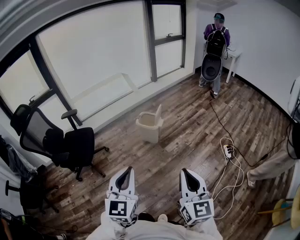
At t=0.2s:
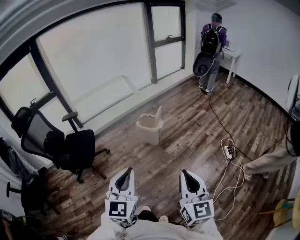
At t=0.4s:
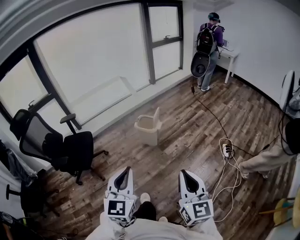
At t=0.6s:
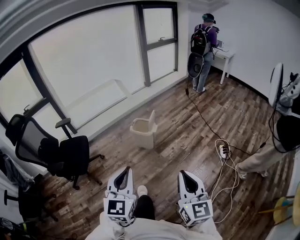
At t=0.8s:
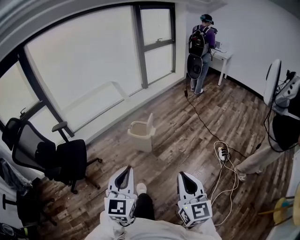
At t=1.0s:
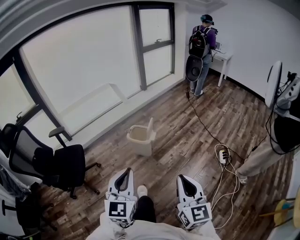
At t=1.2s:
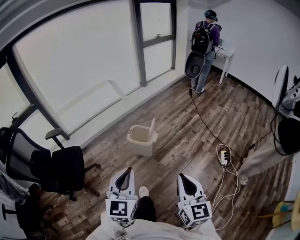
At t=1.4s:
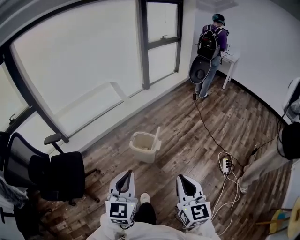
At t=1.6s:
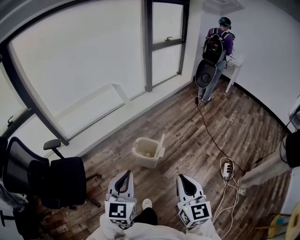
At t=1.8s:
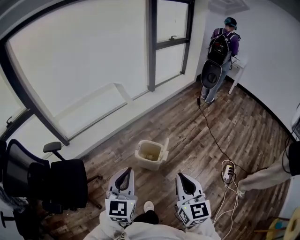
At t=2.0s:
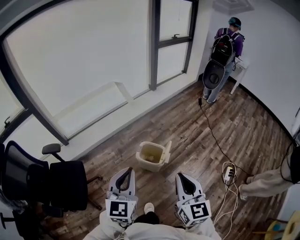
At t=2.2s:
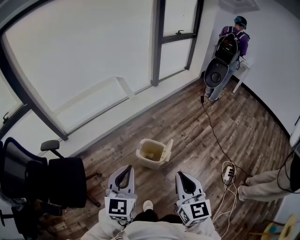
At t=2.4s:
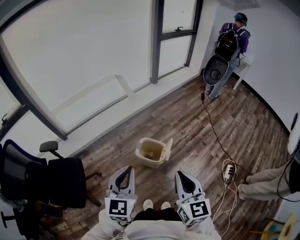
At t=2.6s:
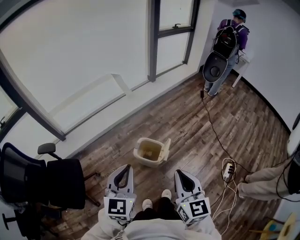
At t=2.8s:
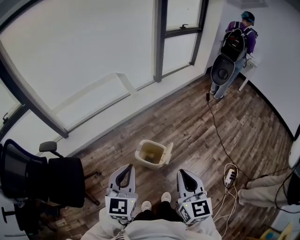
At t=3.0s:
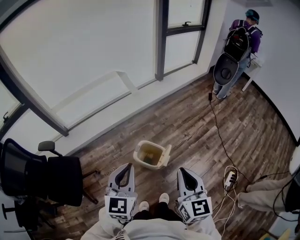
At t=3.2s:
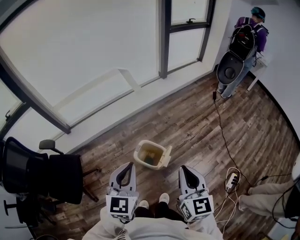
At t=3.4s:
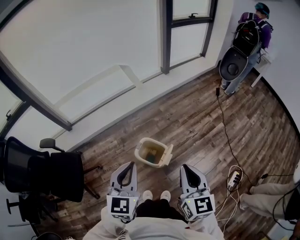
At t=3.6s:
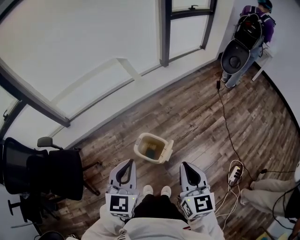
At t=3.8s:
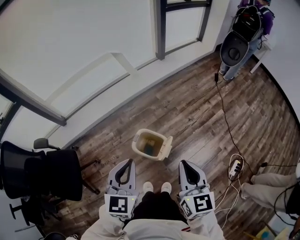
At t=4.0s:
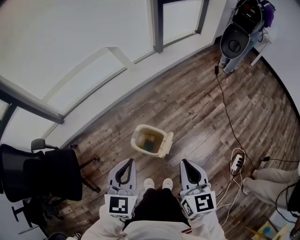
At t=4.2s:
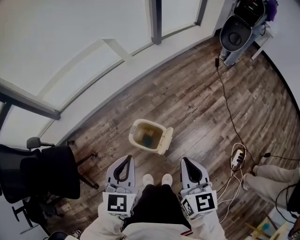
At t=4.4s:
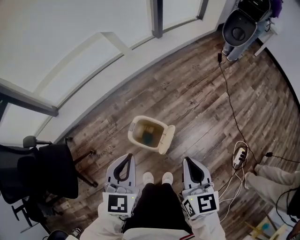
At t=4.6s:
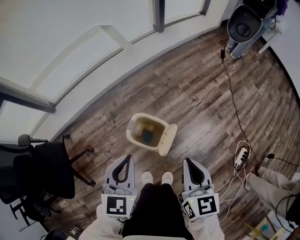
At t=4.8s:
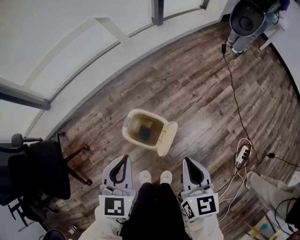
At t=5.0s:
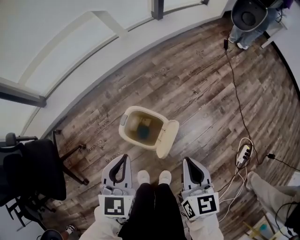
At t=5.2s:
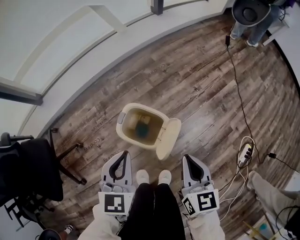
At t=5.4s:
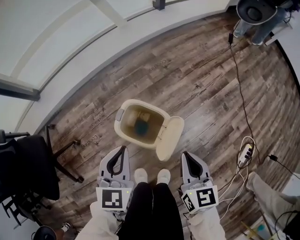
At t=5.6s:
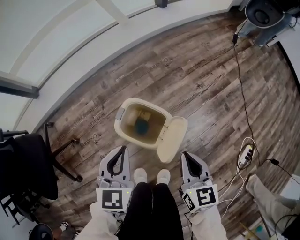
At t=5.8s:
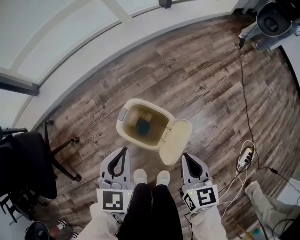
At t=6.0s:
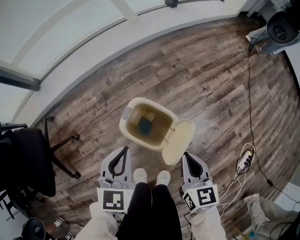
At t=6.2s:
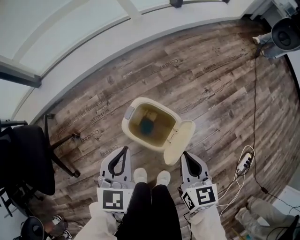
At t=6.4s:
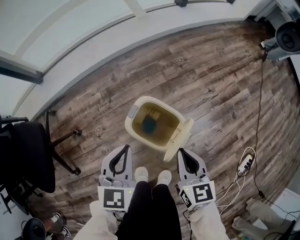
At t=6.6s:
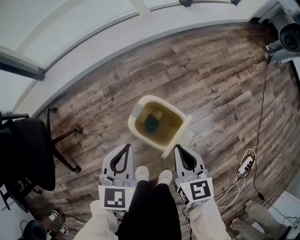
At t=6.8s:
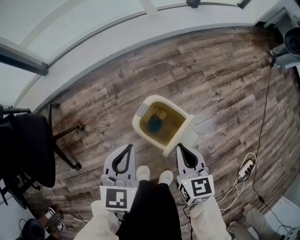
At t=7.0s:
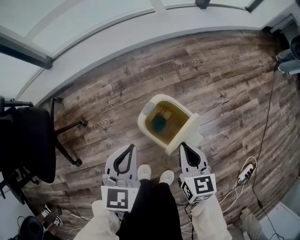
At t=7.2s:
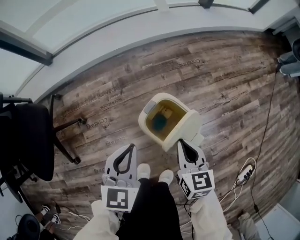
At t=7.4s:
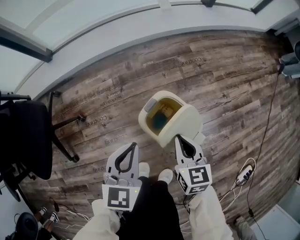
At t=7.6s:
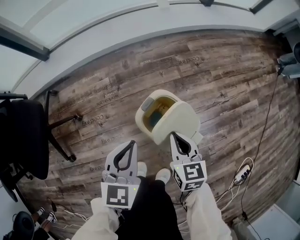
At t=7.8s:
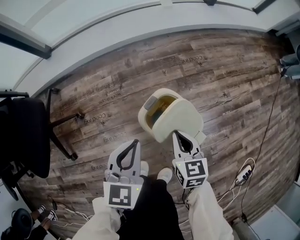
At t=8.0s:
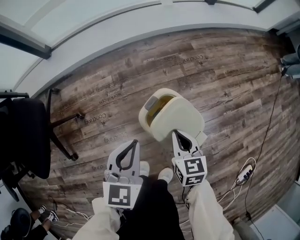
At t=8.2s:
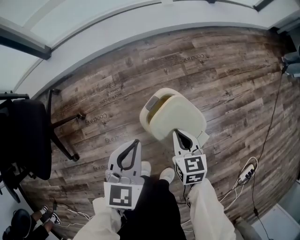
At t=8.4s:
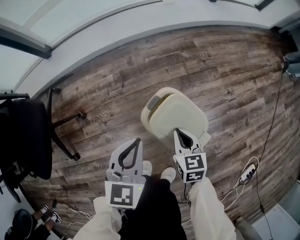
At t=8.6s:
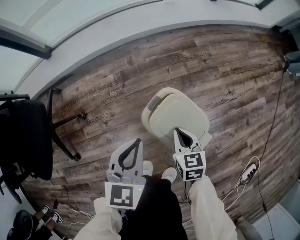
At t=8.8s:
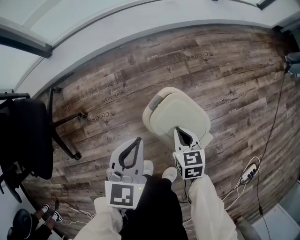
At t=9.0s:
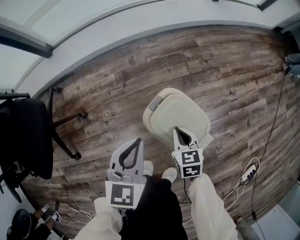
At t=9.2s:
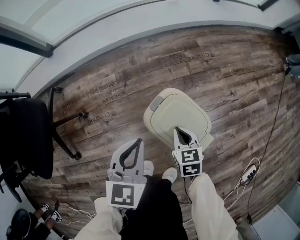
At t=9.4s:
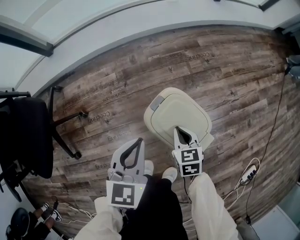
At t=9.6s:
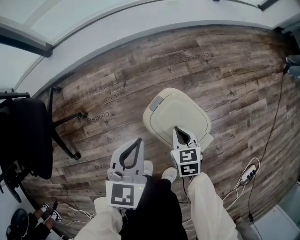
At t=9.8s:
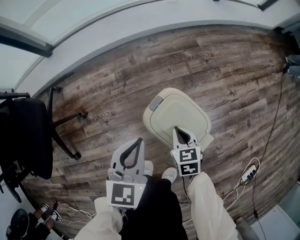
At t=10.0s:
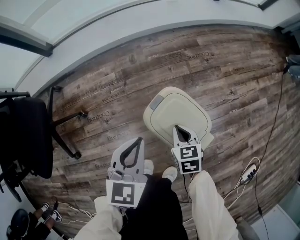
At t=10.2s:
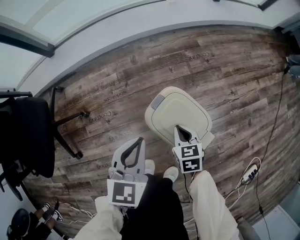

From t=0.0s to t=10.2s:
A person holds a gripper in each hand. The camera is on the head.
From t=0.0s to t=1.4s: The two grippers go roughly 30 cm forward.
From t=1.4s to t=3.0s: Both grippers travel together forward, roughly 35 cm.
From t=3.0s to t=4.4s: The two grippers go about 20 cm downward and forward.
From t=4.4s to t=5.8s: The two grippers go about 30 cm downward.
From t=5.8s to t=7.2s: The right gripper travels to the left, forward and downward by about 15 cm; the left gripper is displaced to the left by about 10 cm.
From t=7.2s to t=8.8s: The right gripper shifts some 10 cm downward.
From t=8.8s to t=10.2s: The grippers stay close to where they were, moving slightly.

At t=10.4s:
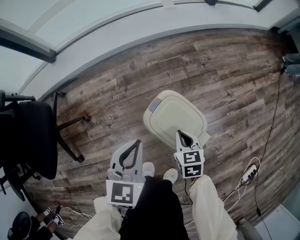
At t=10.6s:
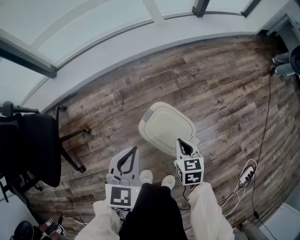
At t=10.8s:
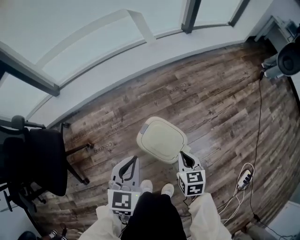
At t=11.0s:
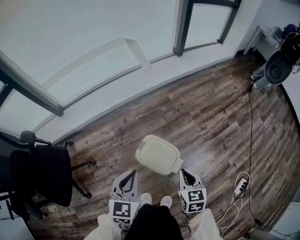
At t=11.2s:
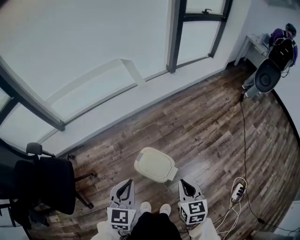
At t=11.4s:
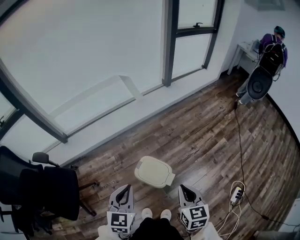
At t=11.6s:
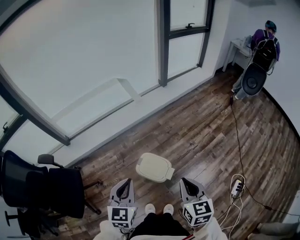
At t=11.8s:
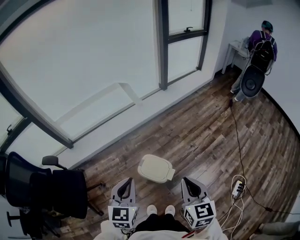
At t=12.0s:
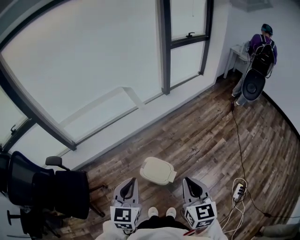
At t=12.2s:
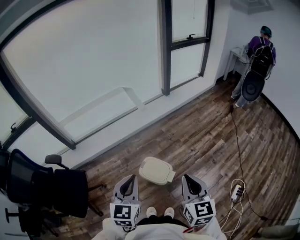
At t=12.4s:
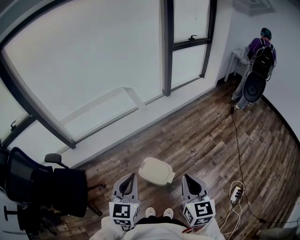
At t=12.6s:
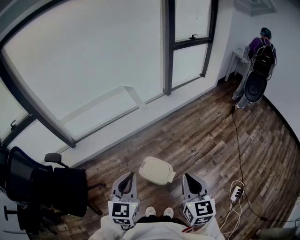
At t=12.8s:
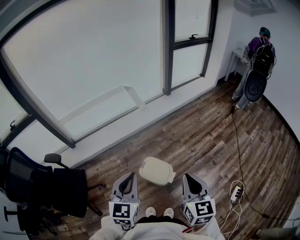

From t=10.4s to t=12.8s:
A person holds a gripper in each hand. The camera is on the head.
From t=10.4s to t=11.6s: Both grippers travel together upward, about 50 cm. The right gripper turns by about 30 degrees.
From t=11.6s to t=12.8s: Both grippers move upward, approximately 10 cm.

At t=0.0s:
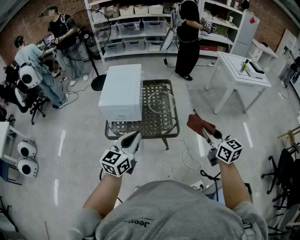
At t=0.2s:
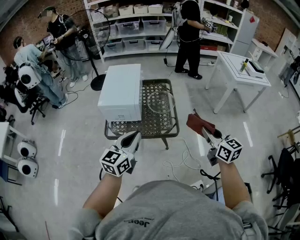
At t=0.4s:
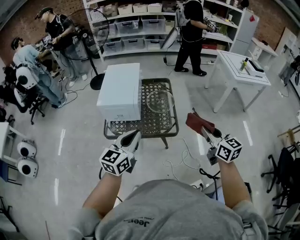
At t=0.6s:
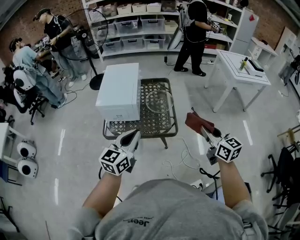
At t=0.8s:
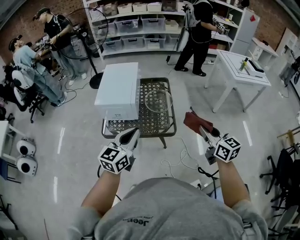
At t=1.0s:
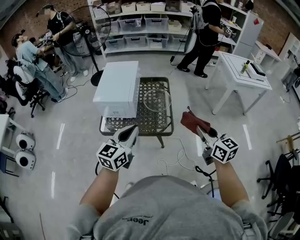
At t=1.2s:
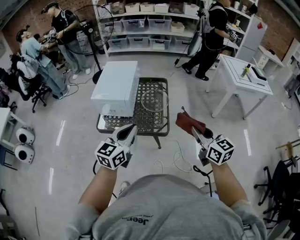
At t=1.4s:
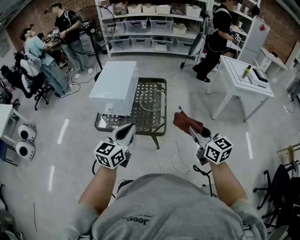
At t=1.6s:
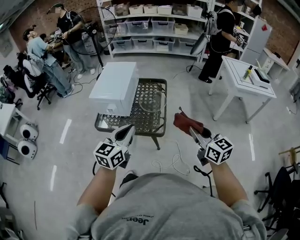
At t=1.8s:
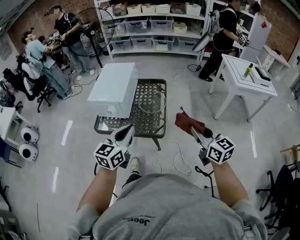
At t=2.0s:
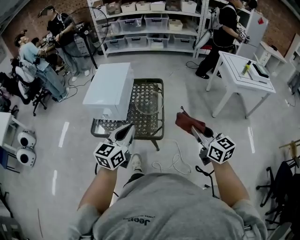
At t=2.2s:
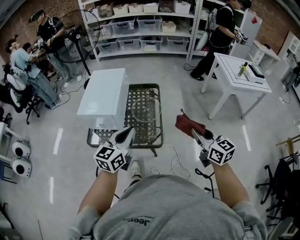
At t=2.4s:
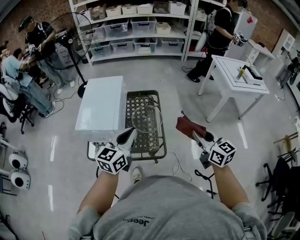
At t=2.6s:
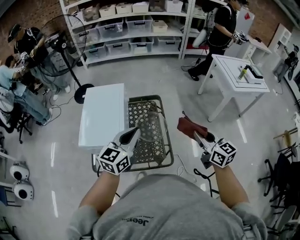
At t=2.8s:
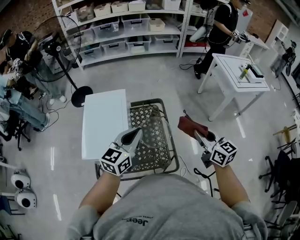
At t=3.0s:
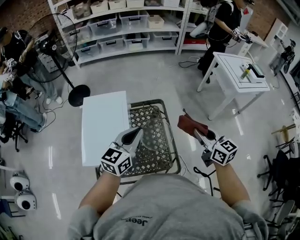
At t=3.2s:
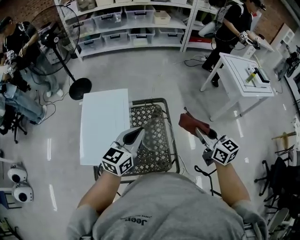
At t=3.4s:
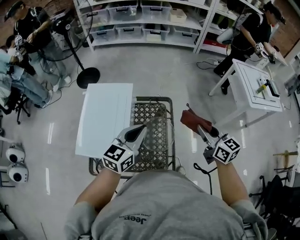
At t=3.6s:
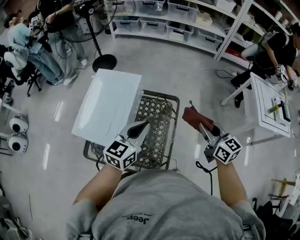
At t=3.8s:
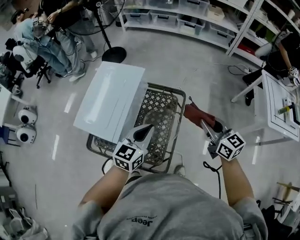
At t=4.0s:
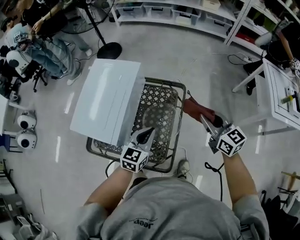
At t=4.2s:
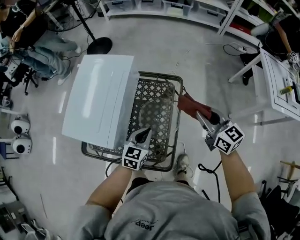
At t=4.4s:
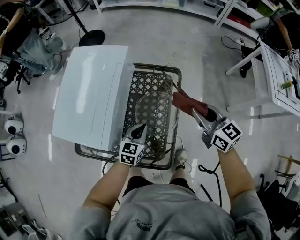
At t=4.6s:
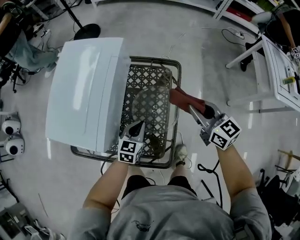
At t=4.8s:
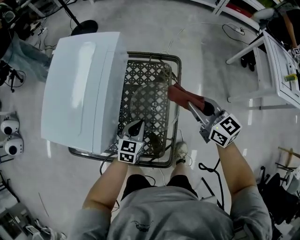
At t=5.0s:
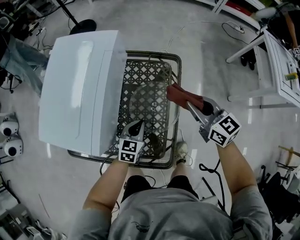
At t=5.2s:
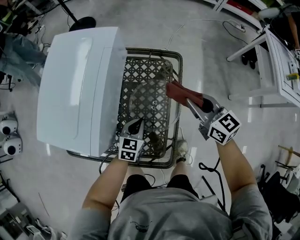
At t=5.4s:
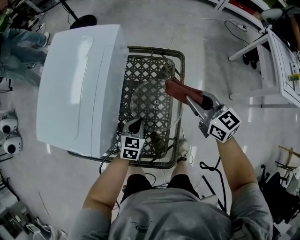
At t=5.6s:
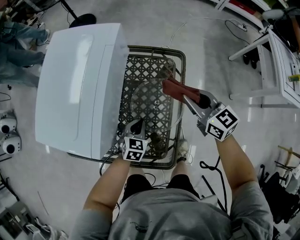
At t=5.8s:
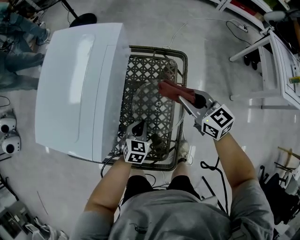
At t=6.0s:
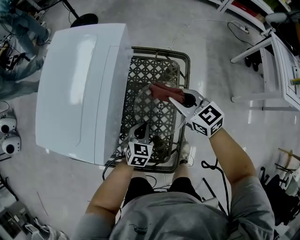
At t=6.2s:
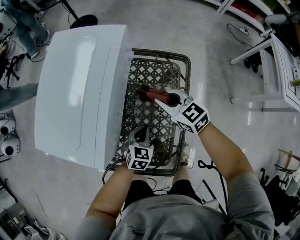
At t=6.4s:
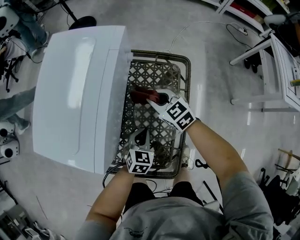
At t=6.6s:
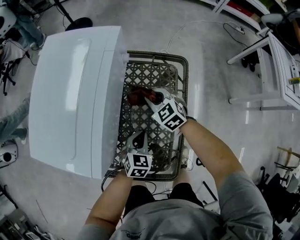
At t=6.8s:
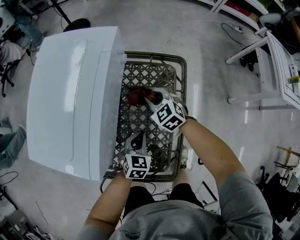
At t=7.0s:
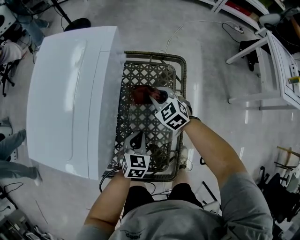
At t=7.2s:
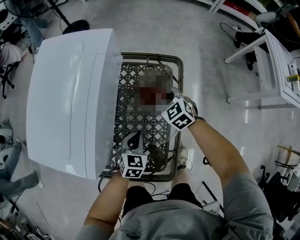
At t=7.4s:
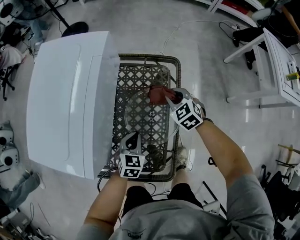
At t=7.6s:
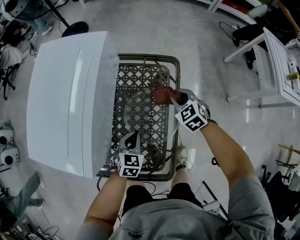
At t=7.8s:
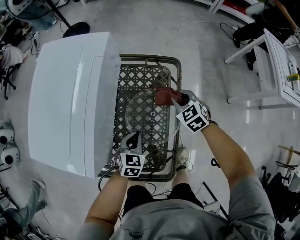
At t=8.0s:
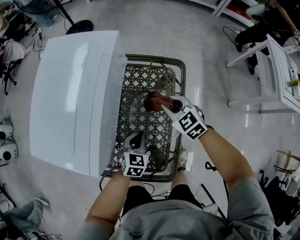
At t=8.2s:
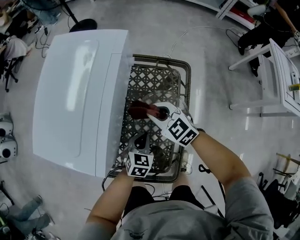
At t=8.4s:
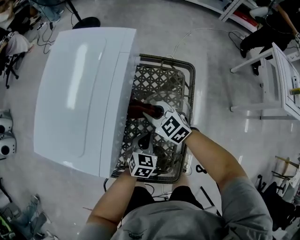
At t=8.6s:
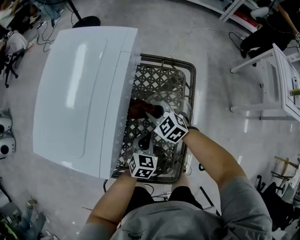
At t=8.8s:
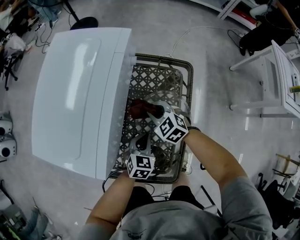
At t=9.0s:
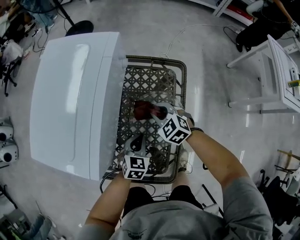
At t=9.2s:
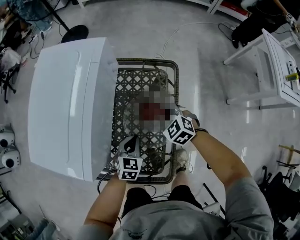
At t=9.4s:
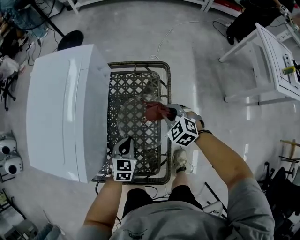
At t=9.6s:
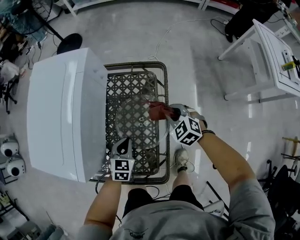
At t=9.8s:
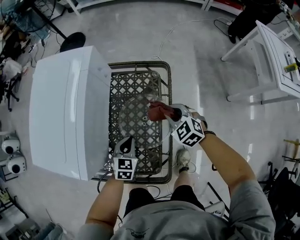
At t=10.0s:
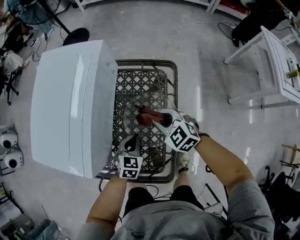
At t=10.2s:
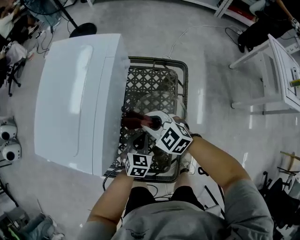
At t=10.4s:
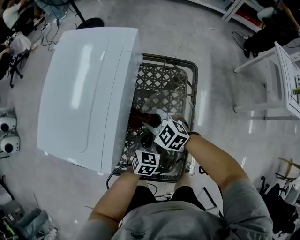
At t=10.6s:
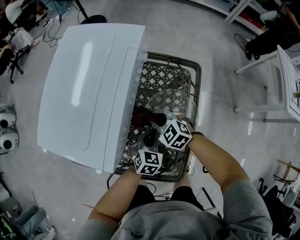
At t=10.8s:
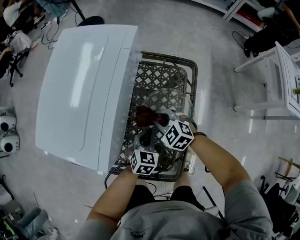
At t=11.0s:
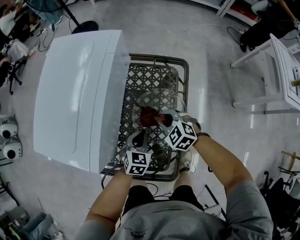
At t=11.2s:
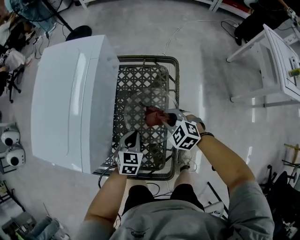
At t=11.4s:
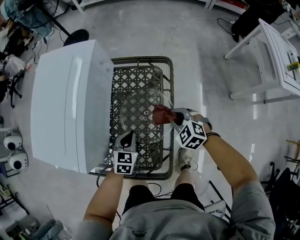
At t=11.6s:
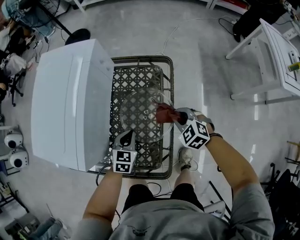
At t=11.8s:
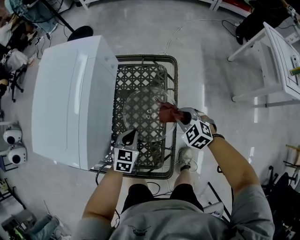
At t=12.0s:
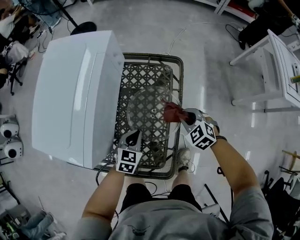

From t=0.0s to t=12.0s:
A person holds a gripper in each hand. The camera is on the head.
From t=0.0s to t=1.6s: The right gripper is displaced to the right by roughly 10 cm. Meanwhile the left gripper heads to the right, covering roughly 15 cm.
From t=1.6s to t=3.0s: Both grippers move forward, approximately 35 cm.
From t=3.0s to t=4.4s: The left gripper heads downward, covering approximately 30 cm, and turns by some 30 degrees, while the right gripper shifts approximately 20 cm downward and forward, and swivels about 20 degrees.
From t=4.4s to t=6.0s: The left gripper is displaced downward by roughly 10 cm, while the right gripper moves downward, to the left and forward, approximately 20 cm.
From t=6.0s to t=7.6s: The right gripper goes some 15 cm downward and to the right, and swivels about 30 degrees.
From t=7.6s to t=9.0s: The right gripper moves to the left, about 15 cm.
From t=9.0s to t=10.4s: The right gripper goes approximately 10 cm to the left.
From t=10.4s to t=12.0s: The right gripper goes roughly 20 cm to the right, and changes its angle by some 20 degrees.
